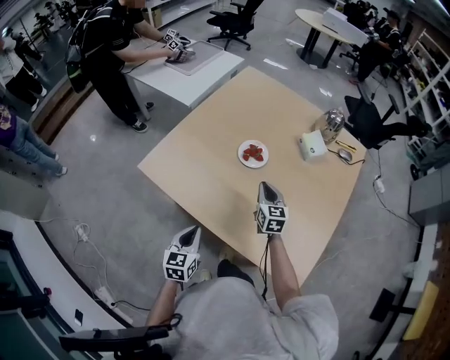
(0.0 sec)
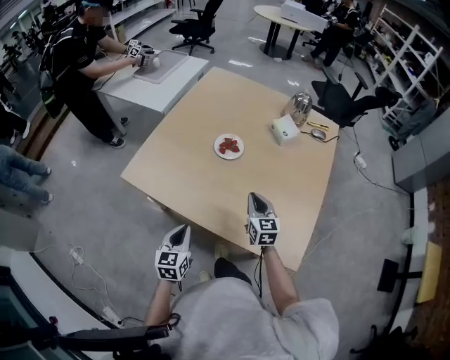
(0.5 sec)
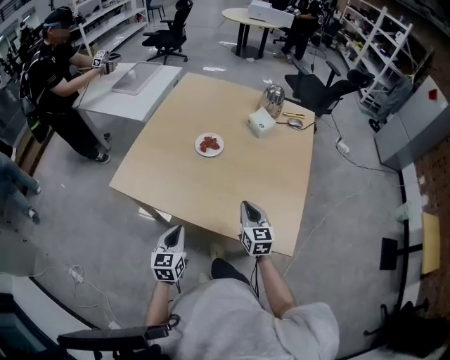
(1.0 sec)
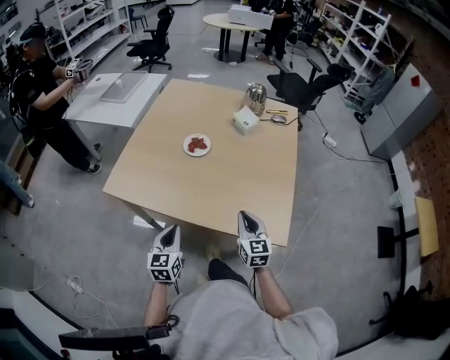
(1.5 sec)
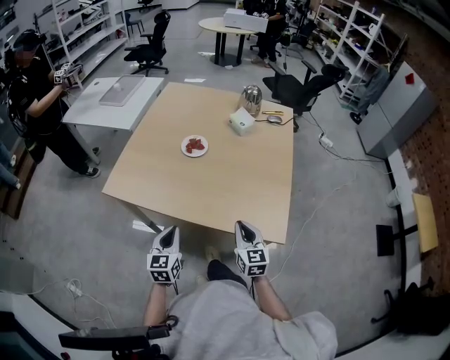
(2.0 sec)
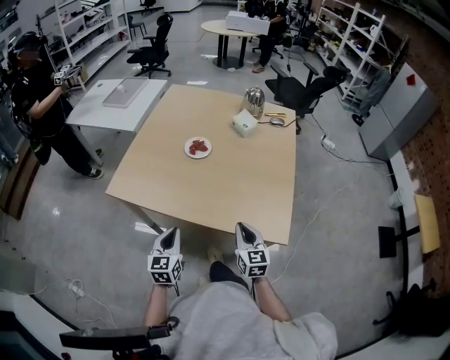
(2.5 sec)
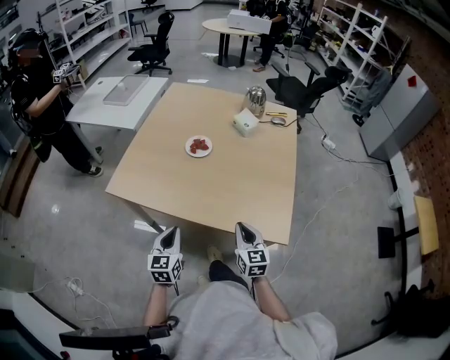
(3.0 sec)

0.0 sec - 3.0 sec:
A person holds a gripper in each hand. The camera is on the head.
0.0 sec - 1.5 sec: The right gripper moves backward, about 25 cm. Meanwhile the left gripper moves backward, some 5 cm.
1.5 sec - 3.0 sec: The right gripper ends up roughly 5 cm from where it was.

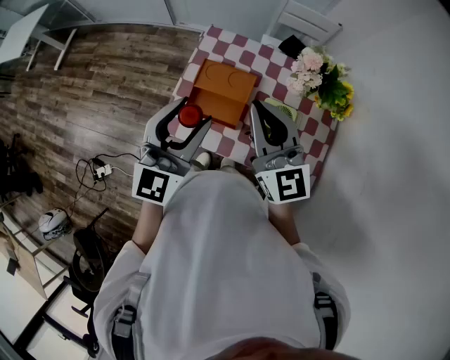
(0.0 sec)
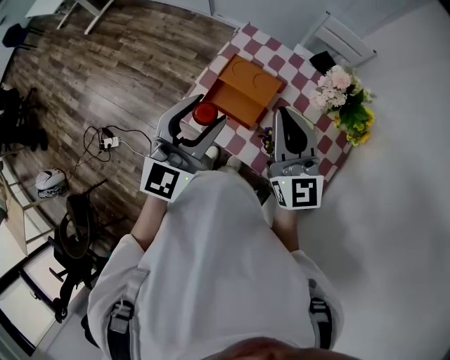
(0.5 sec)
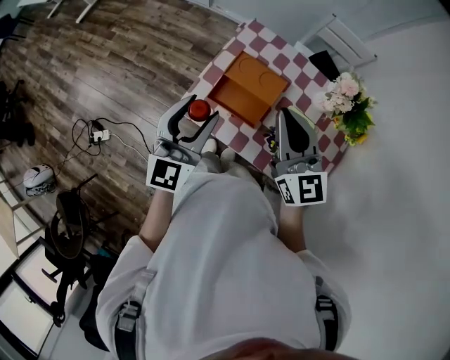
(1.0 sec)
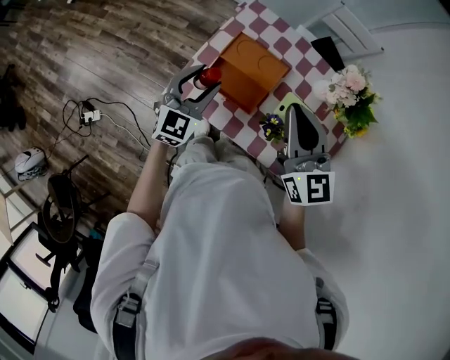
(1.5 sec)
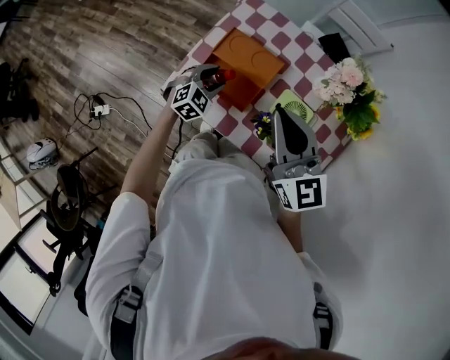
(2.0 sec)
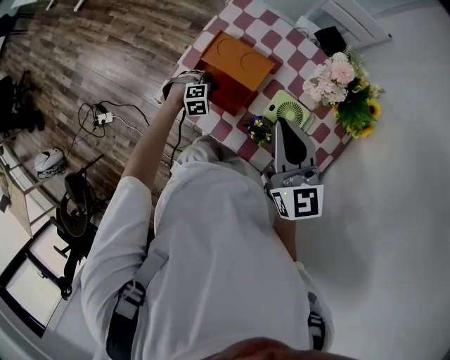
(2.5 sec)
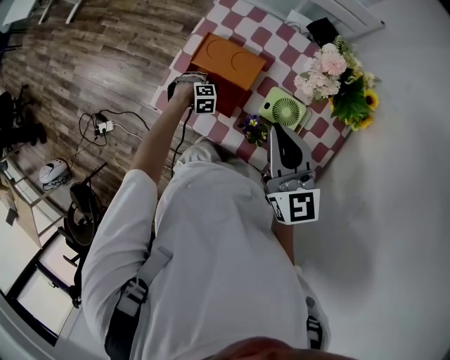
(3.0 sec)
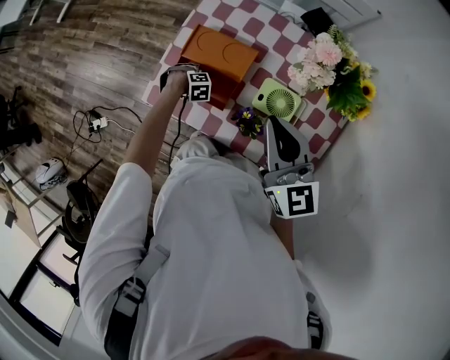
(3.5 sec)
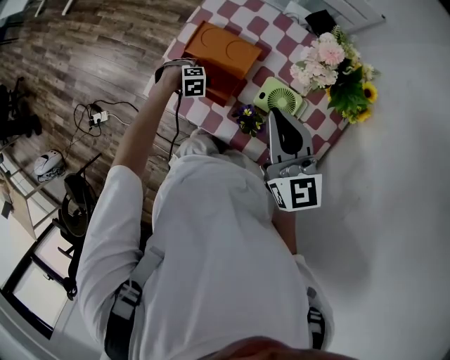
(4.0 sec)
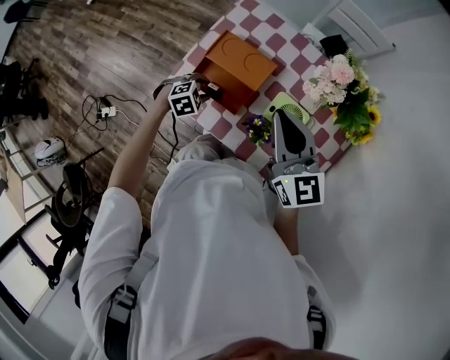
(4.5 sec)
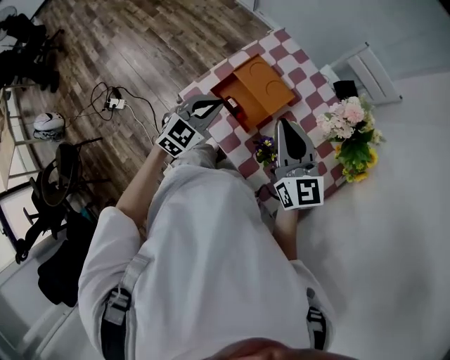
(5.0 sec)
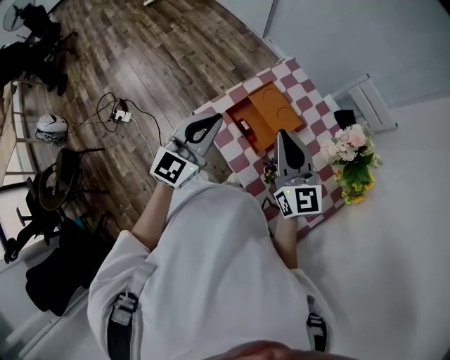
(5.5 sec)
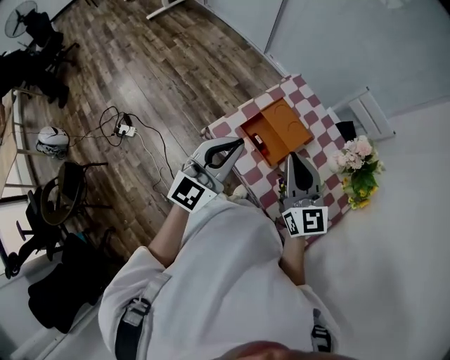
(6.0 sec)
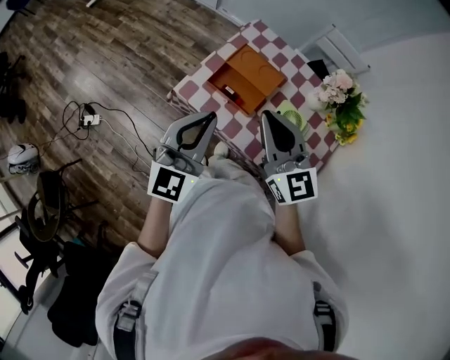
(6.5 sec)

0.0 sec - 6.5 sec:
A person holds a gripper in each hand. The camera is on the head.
0.0 sec - 2.0 sec: The left gripper travels downward by about 35 cm, and angles its fingers downward, by about 50 degrees, while the right gripper shifts about 5 cm downward.
2.0 sec - 4.5 sec: The right gripper moves about 5 cm; the left gripper travels downward and back again, approximately 20 cm each way, and swivels some 30 degrees.
4.5 sec - 6.5 sec: The right gripper ends up about 20 cm from where it was, while the left gripper is displaced upward by about 35 cm, angles its fingers upward, by about 70 degrees, and closes its fingers.

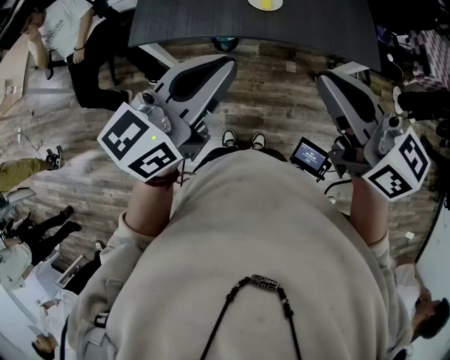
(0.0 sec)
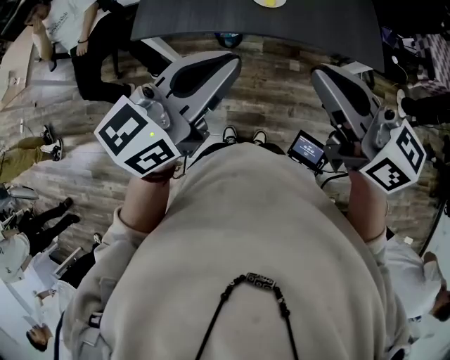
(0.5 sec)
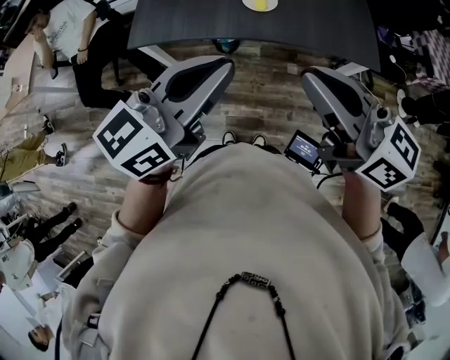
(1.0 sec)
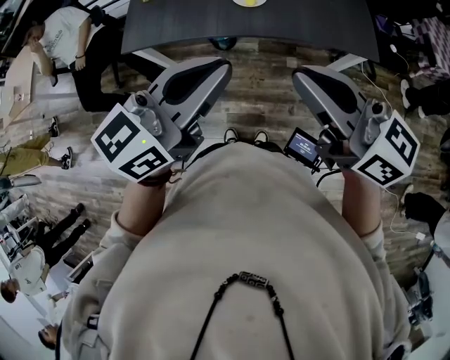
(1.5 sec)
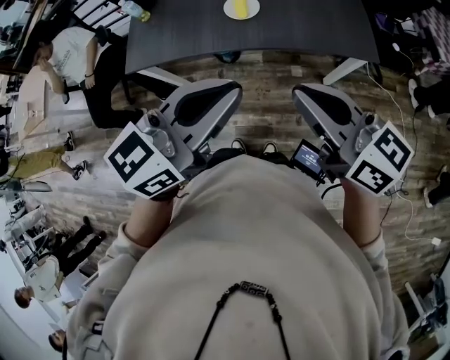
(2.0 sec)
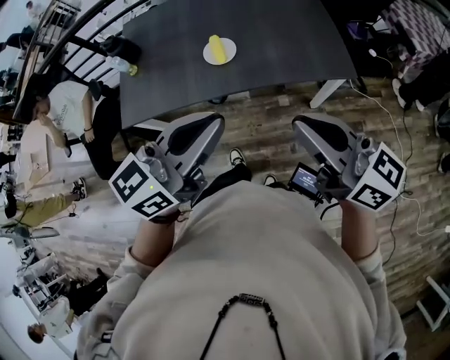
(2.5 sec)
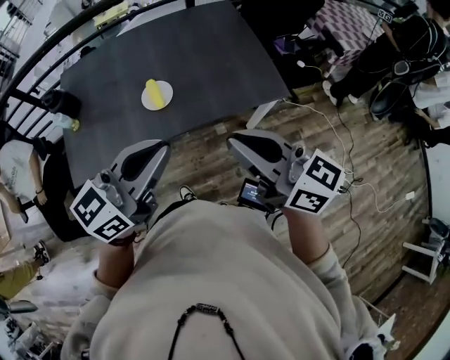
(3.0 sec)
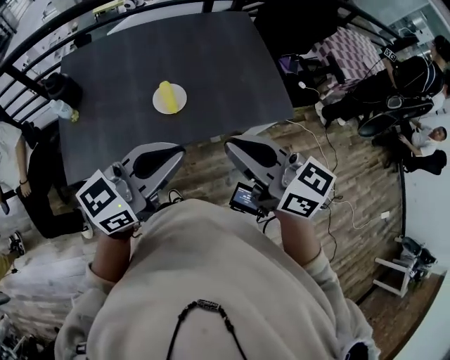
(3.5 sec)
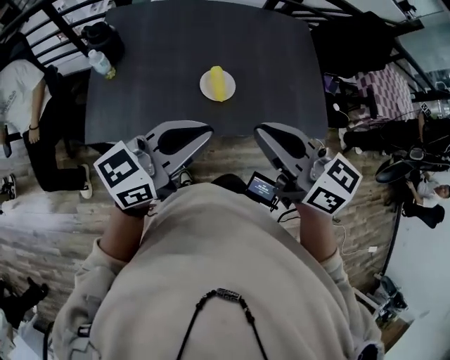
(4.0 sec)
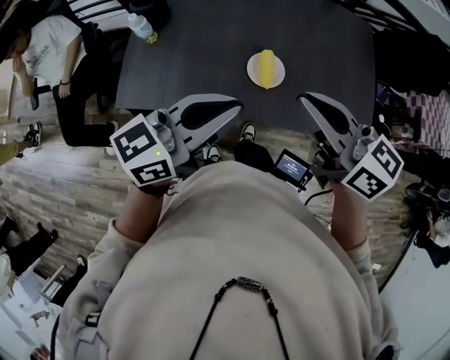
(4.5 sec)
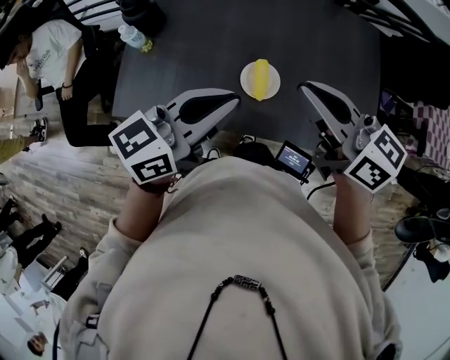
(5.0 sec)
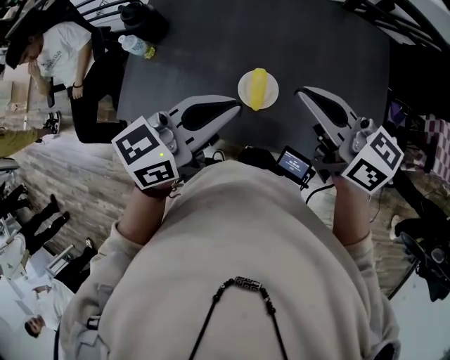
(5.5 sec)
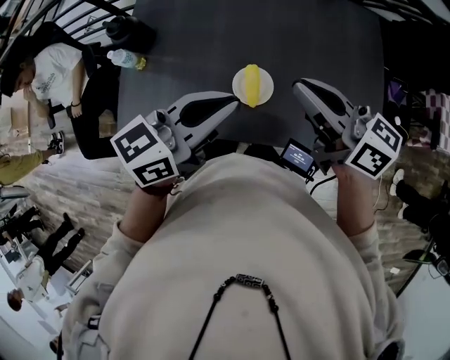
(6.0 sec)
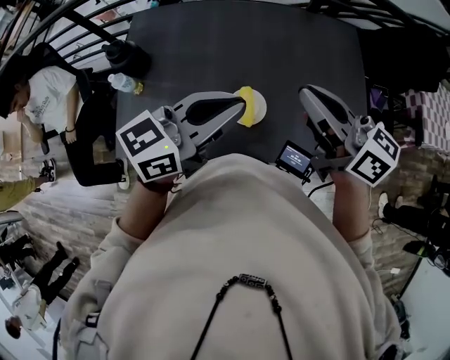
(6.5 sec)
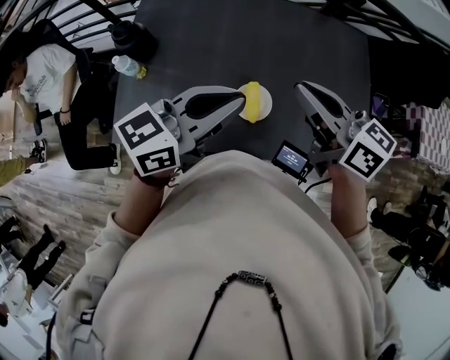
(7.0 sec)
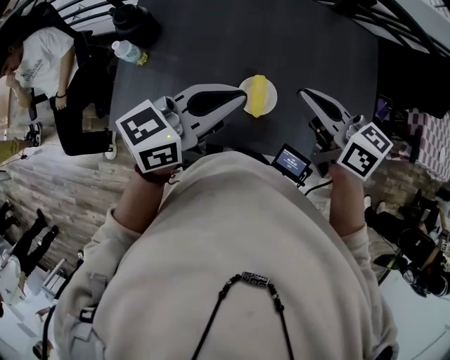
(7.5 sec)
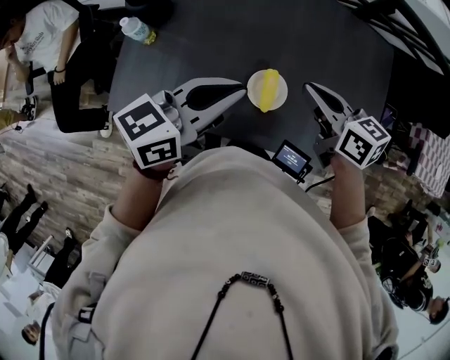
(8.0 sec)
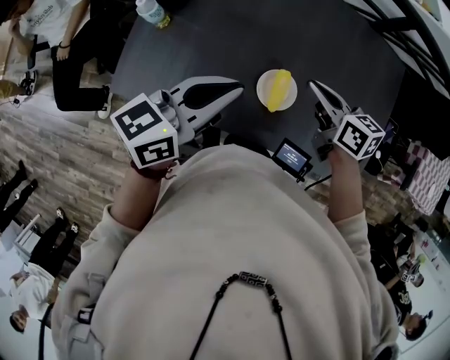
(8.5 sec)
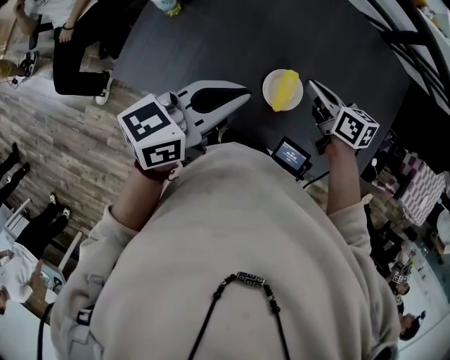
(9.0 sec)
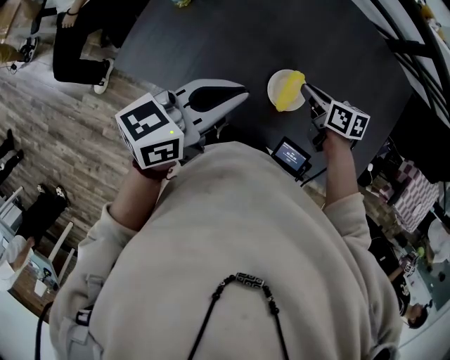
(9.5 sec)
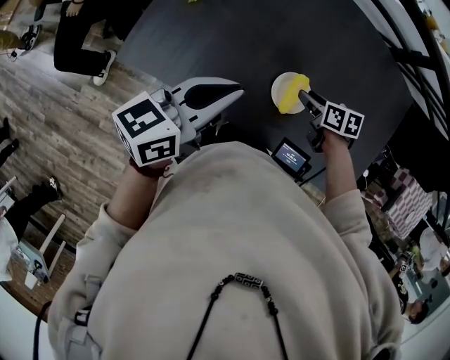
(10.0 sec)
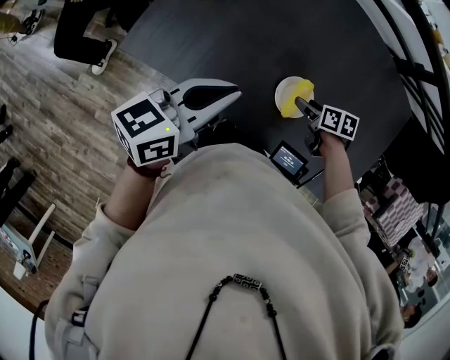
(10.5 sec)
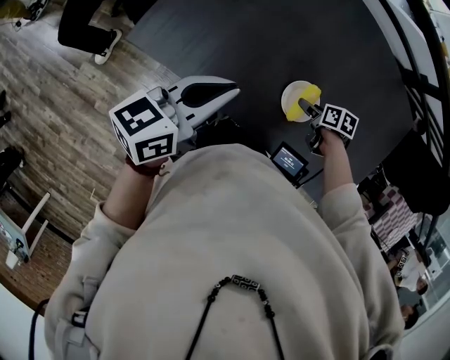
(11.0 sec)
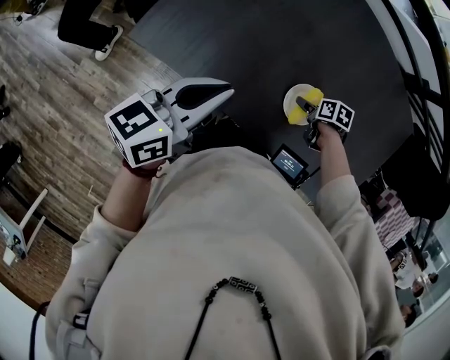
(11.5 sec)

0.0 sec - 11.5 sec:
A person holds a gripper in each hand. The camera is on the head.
0.0 sec - 2.0 sec: The right gripper goes approximately 10 cm to the right and downward. Meanwhile the left gripper heads to the right, covering approximately 10 cm.
2.0 sec - 4.0 sec: Both grippers move forward and to the left, about 20 cm.
4.0 sec - 6.0 sec: The two grippers go about 20 cm forward.
6.0 sec - 7.5 sec: There are only small adjustments of the grippers.
7.5 sec - 9.5 sec: The left gripper moves to the left and downward, some 10 cm, and turns by approximately 20 degrees, while the right gripper shifts some 20 cm downward, and rotates some 30 degrees.
9.5 sec - 11.5 sec: The right gripper shifts some 15 cm downward, swivels roughly 30 degrees, and opens. The left gripper travels to the left by roughly 5 cm.

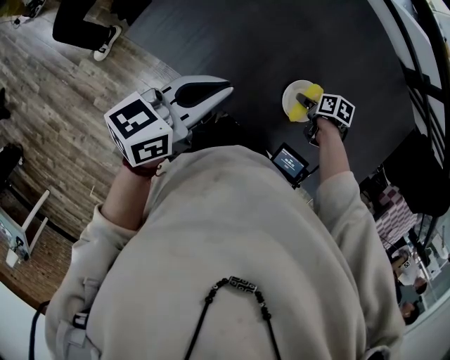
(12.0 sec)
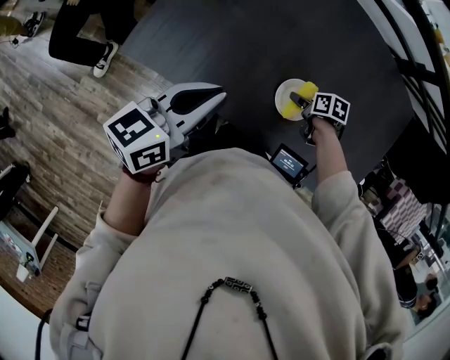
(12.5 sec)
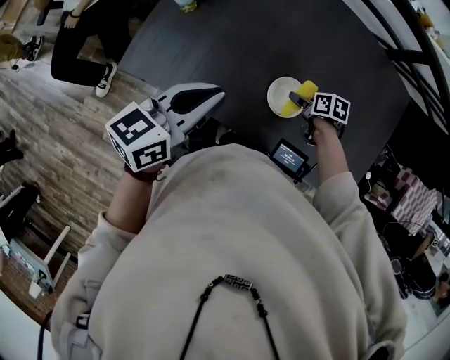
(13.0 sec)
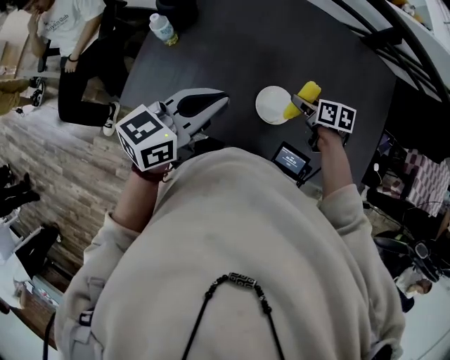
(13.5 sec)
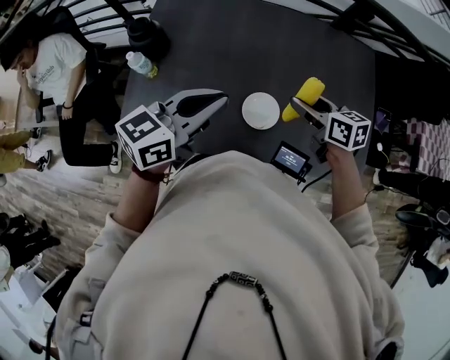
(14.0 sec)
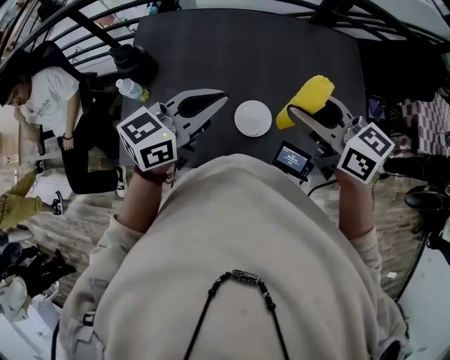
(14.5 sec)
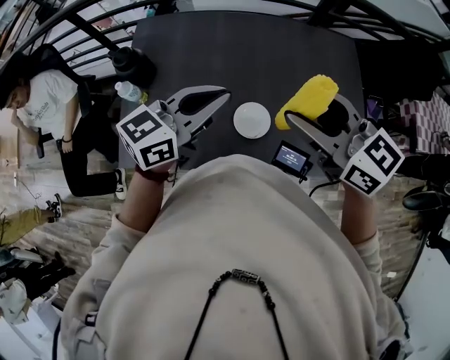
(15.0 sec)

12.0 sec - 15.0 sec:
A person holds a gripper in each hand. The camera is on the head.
12.0 sec - 13.5 sec: The right gripper is displaced upward by approximately 15 cm, and swivels some 30 degrees. Meanwhile the left gripper shifts about 5 cm upward, and rotates some 20 degrees.
13.5 sec - 15.0 sec: The right gripper shifts roughly 35 cm upward, and angles its fingers upward, by roughly 30 degrees, while the left gripper shifts about 10 cm to the right, upward and forward, and changes its angle by about 20 degrees.

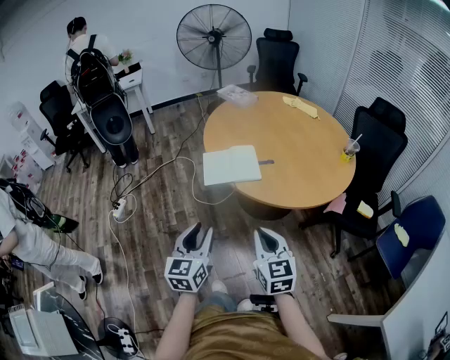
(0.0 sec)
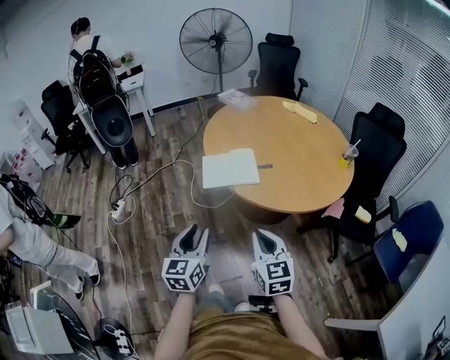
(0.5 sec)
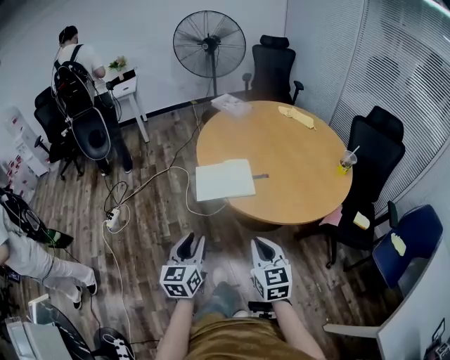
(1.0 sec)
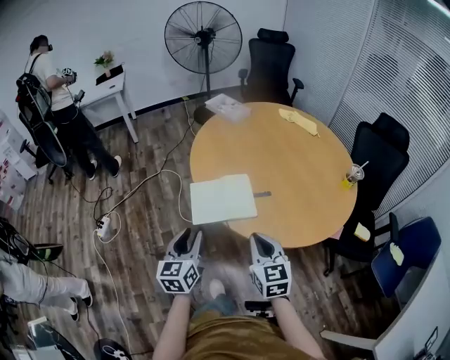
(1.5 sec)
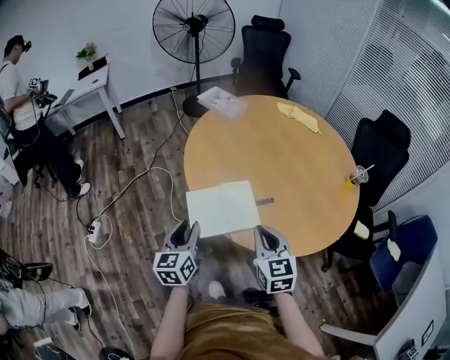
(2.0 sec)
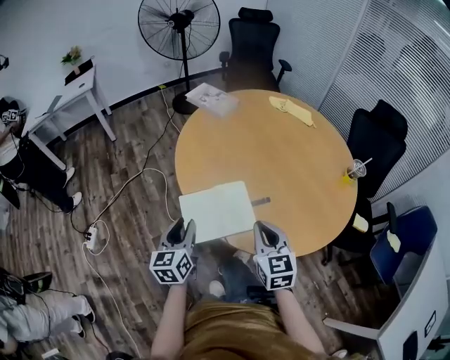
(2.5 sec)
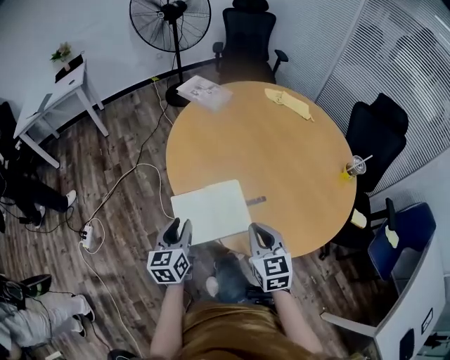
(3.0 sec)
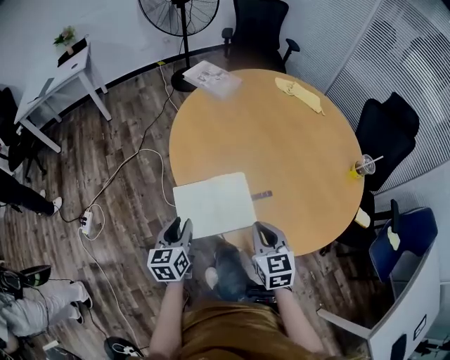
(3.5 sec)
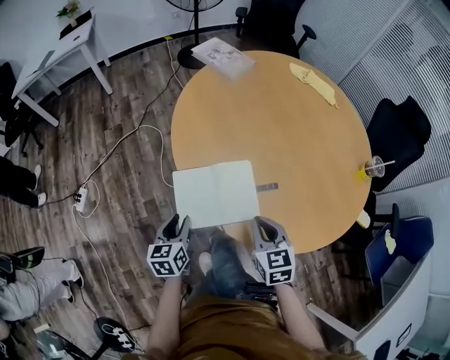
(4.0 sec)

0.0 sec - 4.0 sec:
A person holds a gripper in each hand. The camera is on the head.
0.0 sec - 2.0 sec: Both grippers travel together forward, approximately 30 cm.
2.0 sec - 4.0 sec: The right gripper shifts approximately 10 cm downward and forward, while the left gripper moves downward, about 15 cm.
